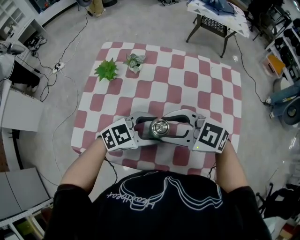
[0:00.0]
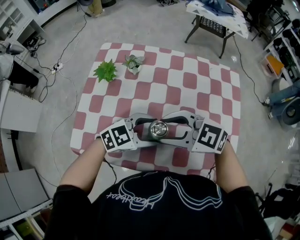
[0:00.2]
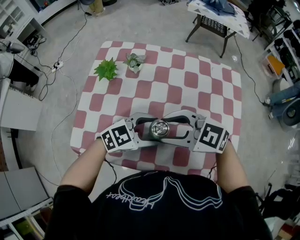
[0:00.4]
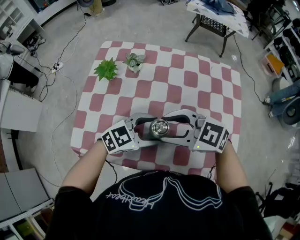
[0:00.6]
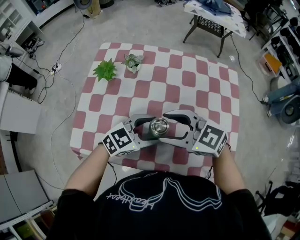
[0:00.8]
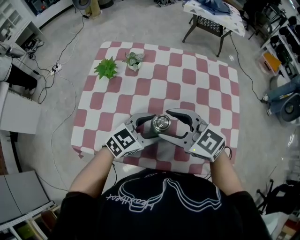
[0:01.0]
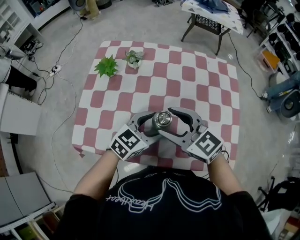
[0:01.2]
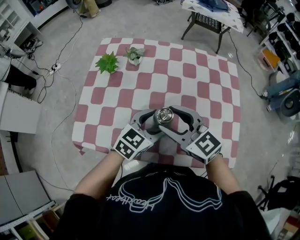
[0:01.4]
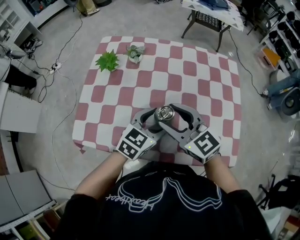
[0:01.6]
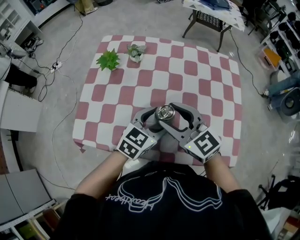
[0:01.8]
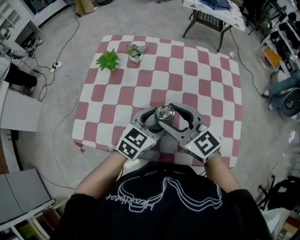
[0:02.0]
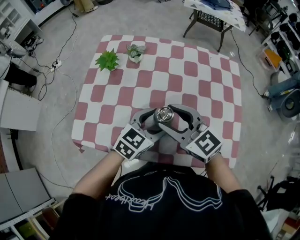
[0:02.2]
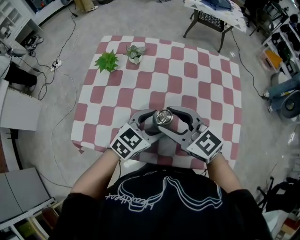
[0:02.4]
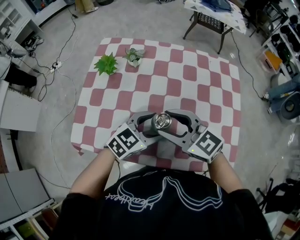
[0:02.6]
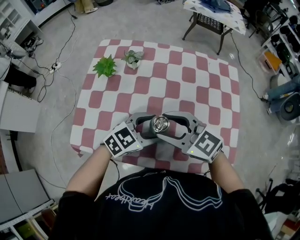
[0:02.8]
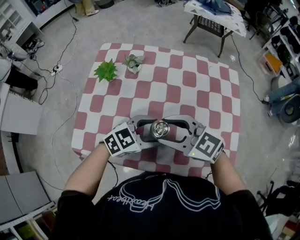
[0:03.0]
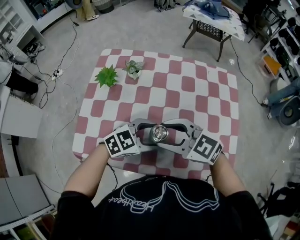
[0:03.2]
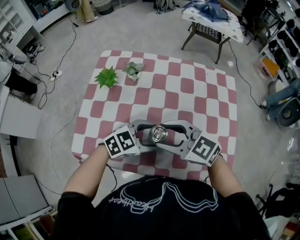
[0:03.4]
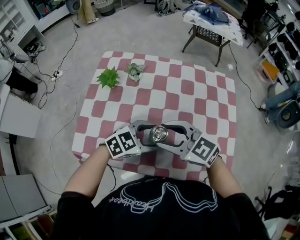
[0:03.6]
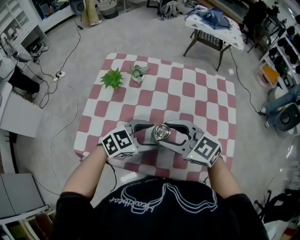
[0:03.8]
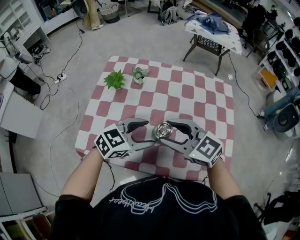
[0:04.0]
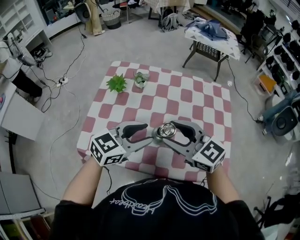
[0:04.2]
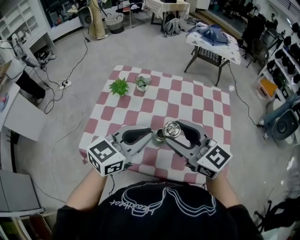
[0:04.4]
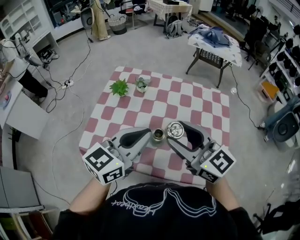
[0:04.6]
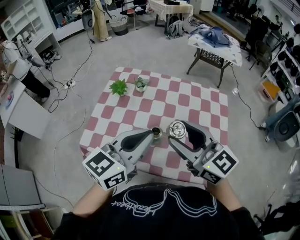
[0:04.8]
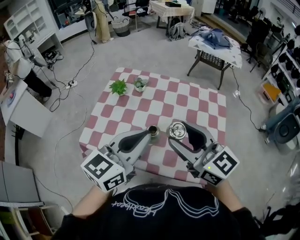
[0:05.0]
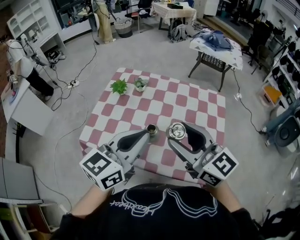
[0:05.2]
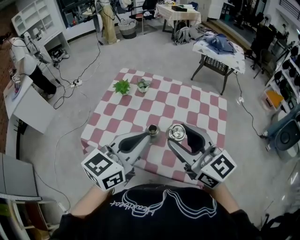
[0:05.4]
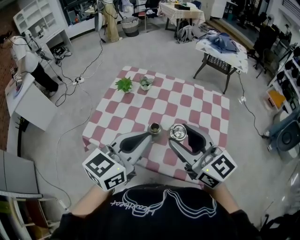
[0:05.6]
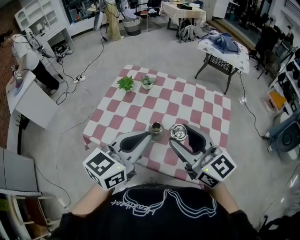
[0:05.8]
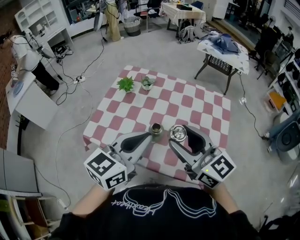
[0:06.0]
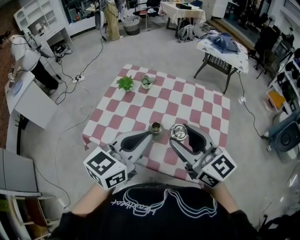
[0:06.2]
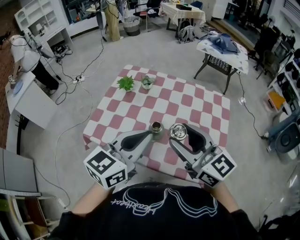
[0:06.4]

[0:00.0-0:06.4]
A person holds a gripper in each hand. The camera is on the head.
0:00.0 to 0:01.6: The left gripper rotates about 30 degrees, while the right gripper turns by approximately 30 degrees.
0:01.6 to 0:03.2: The right gripper turns by roughly 20 degrees. Meanwhile the left gripper turns by approximately 30 degrees.
0:03.2 to 0:04.8: The two grippers go roughly 20 cm upward. The left gripper swivels some 50 degrees, and closes up; the right gripper turns by roughly 30 degrees.
0:04.8 to 0:06.4: There are only small adjustments of the grippers.

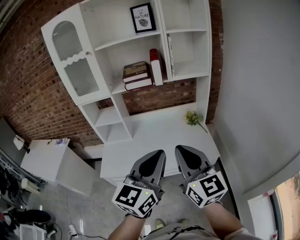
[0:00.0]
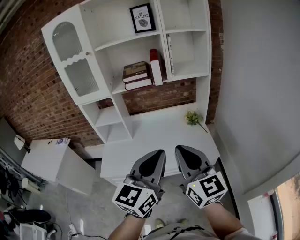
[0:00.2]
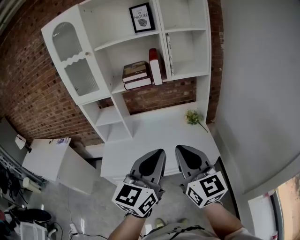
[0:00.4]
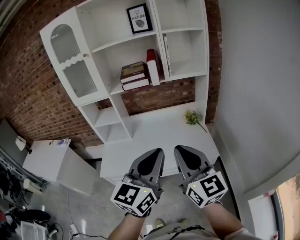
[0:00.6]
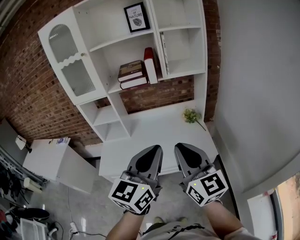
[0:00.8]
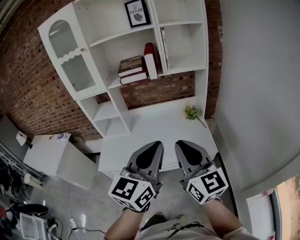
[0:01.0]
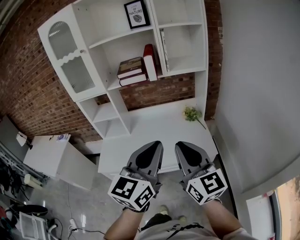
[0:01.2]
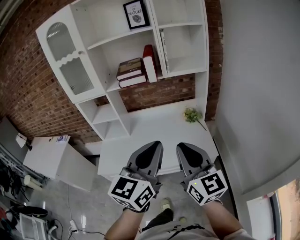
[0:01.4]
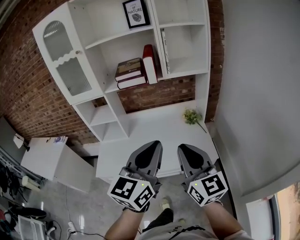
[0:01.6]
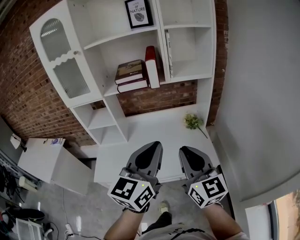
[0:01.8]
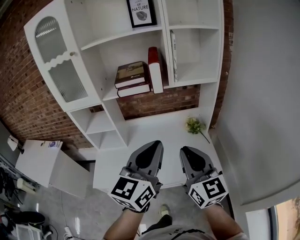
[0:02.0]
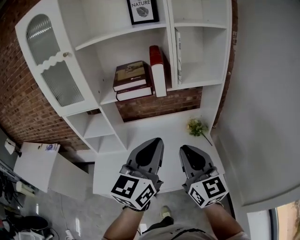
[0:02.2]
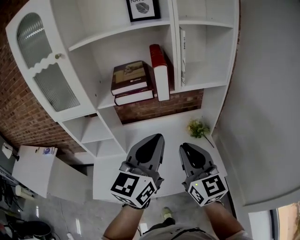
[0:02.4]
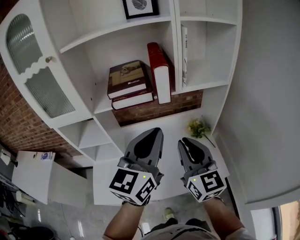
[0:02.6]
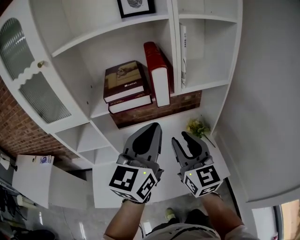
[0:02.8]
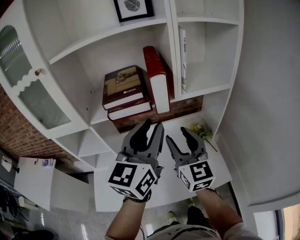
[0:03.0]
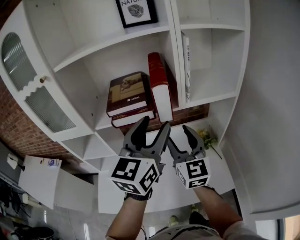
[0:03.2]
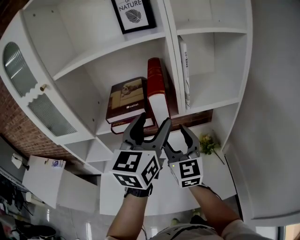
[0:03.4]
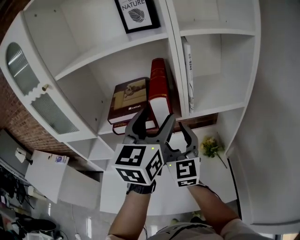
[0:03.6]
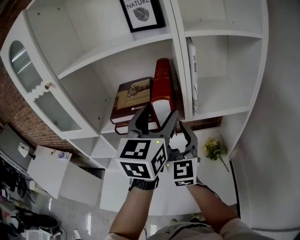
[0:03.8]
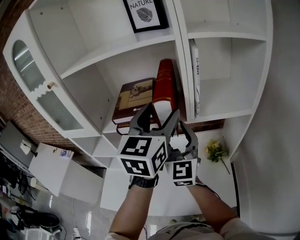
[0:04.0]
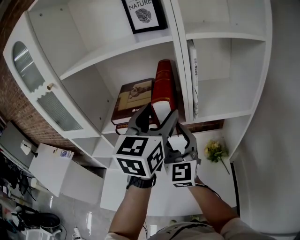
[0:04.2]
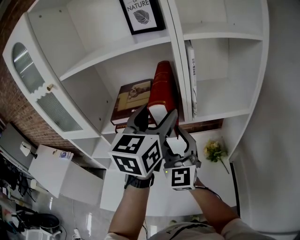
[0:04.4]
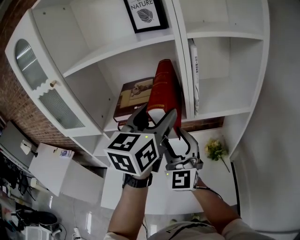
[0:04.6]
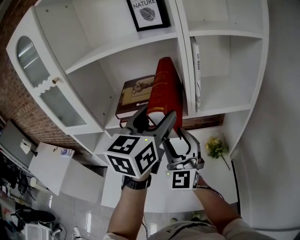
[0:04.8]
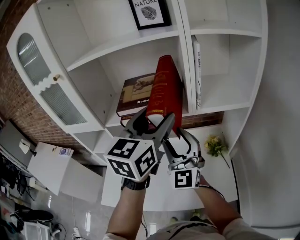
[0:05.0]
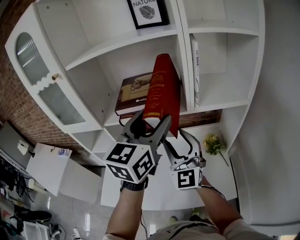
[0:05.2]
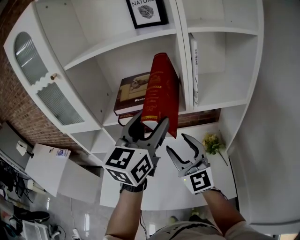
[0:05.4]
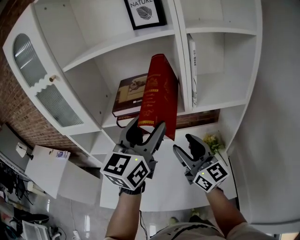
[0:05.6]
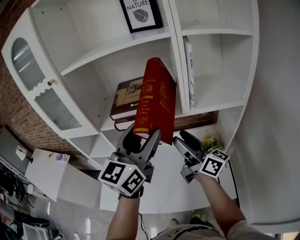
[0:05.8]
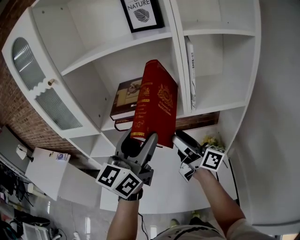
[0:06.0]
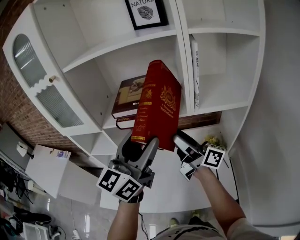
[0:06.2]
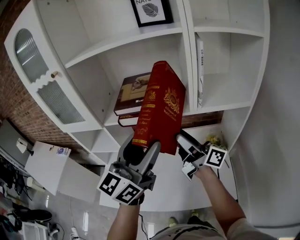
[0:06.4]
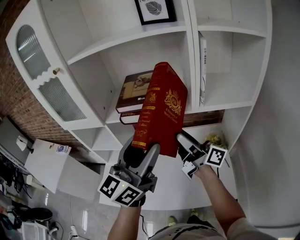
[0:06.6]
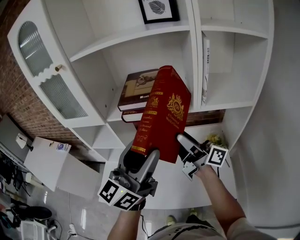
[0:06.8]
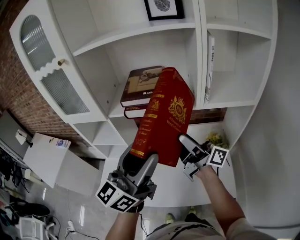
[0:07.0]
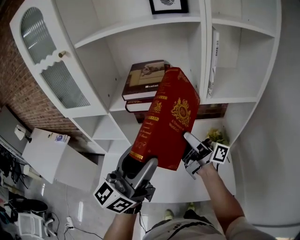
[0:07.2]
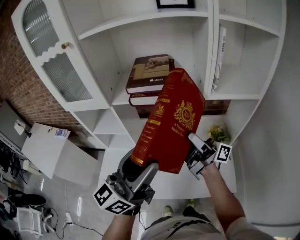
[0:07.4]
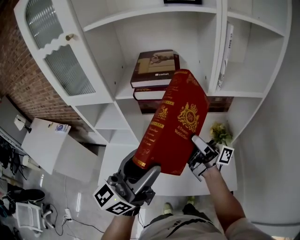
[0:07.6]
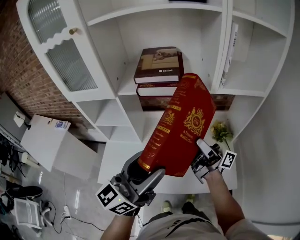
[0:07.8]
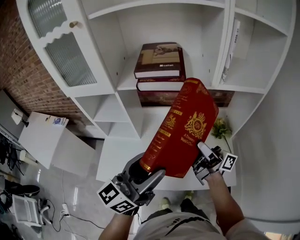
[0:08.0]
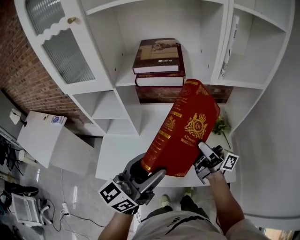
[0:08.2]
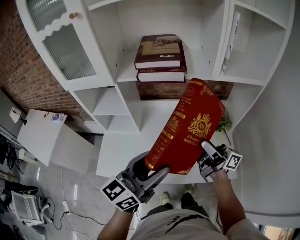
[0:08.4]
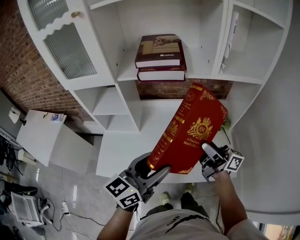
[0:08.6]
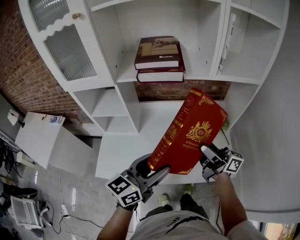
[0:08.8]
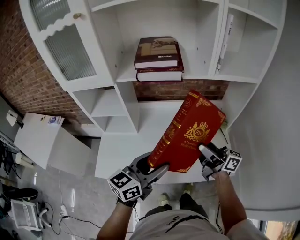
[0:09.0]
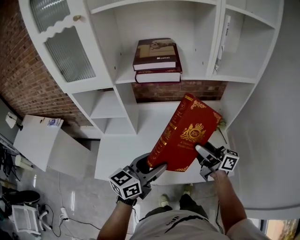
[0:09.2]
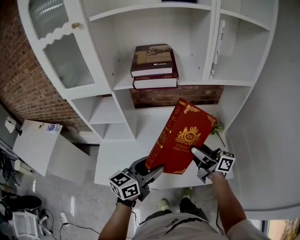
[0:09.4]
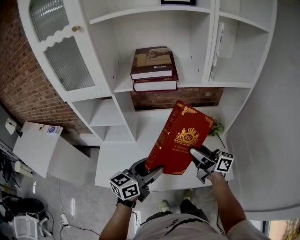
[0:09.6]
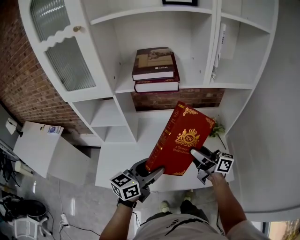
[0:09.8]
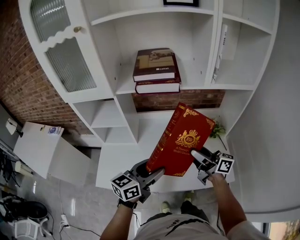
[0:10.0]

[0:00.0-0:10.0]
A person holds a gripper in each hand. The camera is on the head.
0:00.0 to 0:01.4: The right gripper heads to the right, covering some 5 cm, while the left gripper shifts by some 5 cm.
0:01.4 to 0:02.8: The two grippers go about 30 cm forward.
0:02.8 to 0:04.2: Both grippers travel together forward, about 15 cm. The right gripper opens its fingers, while the left gripper opens its fingers.
0:04.2 to 0:05.8: The left gripper travels backward and to the left by some 10 cm; the right gripper moves some 5 cm, and twists roughly 60 degrees clockwise, seen from behind.
0:05.8 to 0:07.2: The right gripper changes place by roughly 5 cm, and changes its angle by roughly 40 degrees; the left gripper travels backward and to the left by some 10 cm, and turns by roughly 20 degrees.
0:07.2 to 0:08.6: Both grippers move downward and backward, roughly 15 cm. The left gripper swivels roughly 20 degrees.
0:08.6 to 0:10.0: The left gripper is displaced downward by roughly 10 cm.

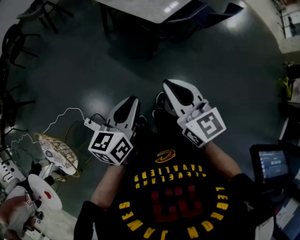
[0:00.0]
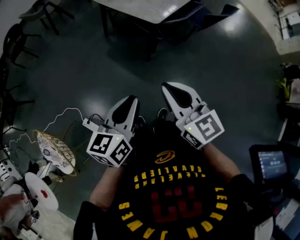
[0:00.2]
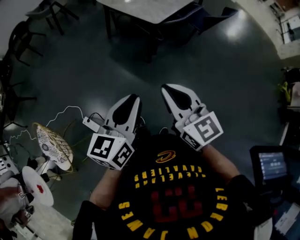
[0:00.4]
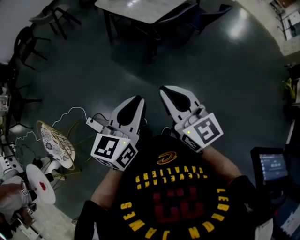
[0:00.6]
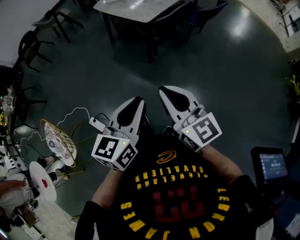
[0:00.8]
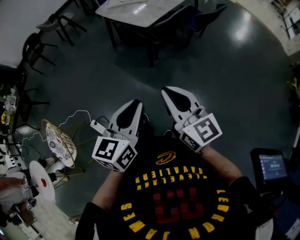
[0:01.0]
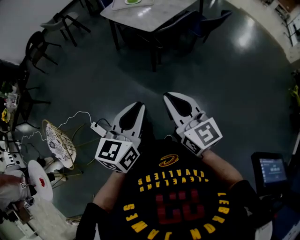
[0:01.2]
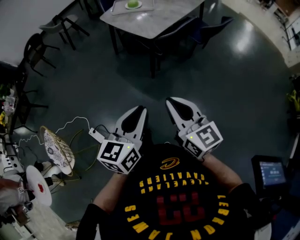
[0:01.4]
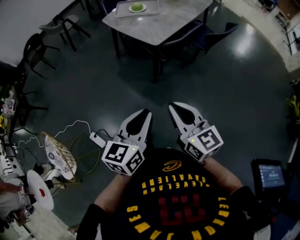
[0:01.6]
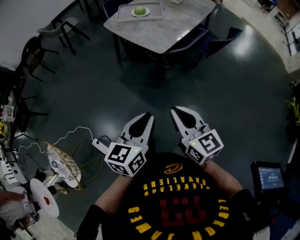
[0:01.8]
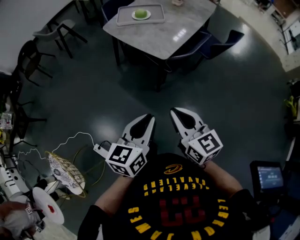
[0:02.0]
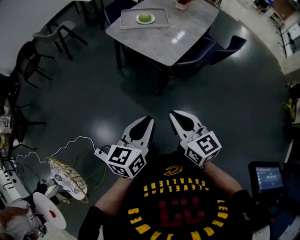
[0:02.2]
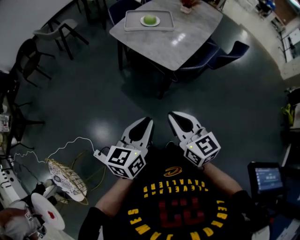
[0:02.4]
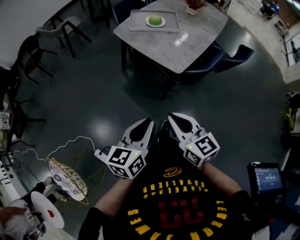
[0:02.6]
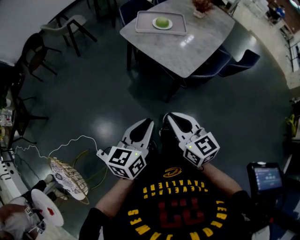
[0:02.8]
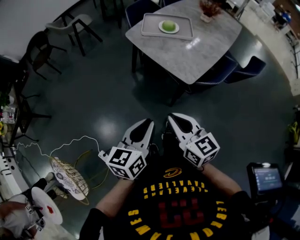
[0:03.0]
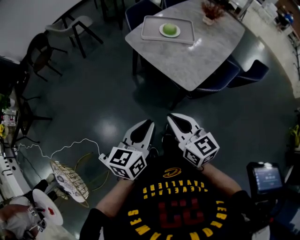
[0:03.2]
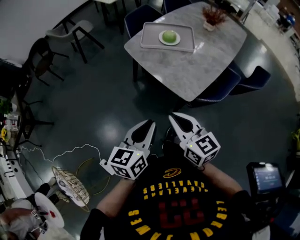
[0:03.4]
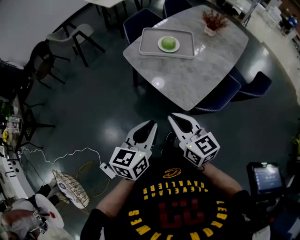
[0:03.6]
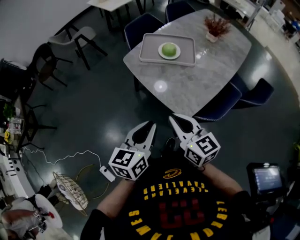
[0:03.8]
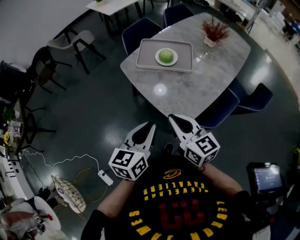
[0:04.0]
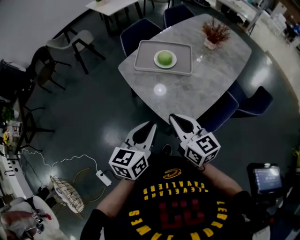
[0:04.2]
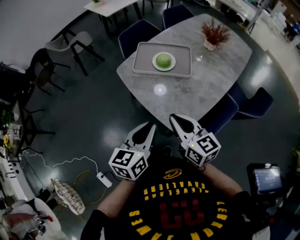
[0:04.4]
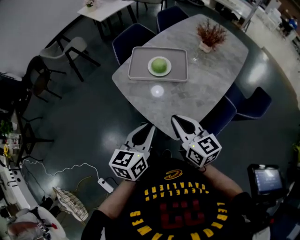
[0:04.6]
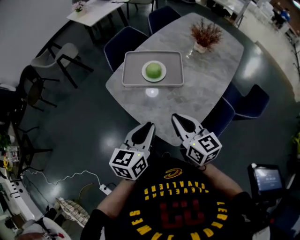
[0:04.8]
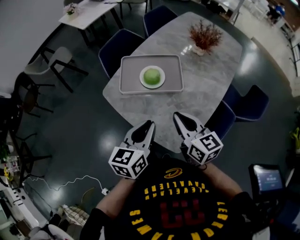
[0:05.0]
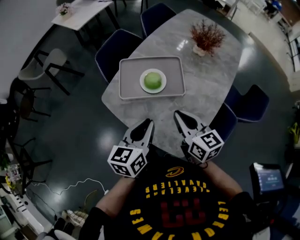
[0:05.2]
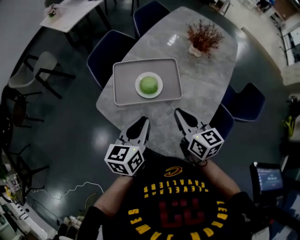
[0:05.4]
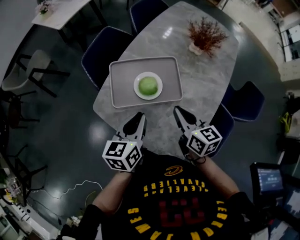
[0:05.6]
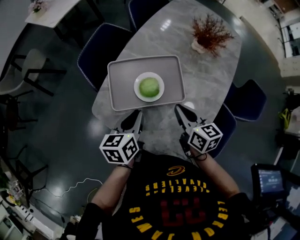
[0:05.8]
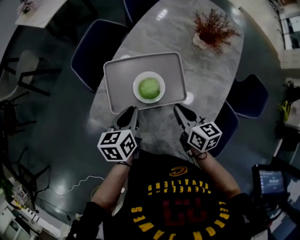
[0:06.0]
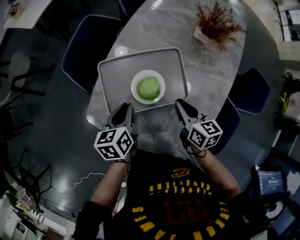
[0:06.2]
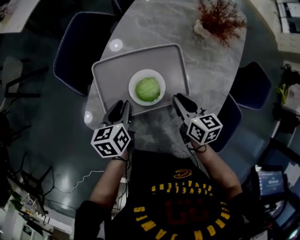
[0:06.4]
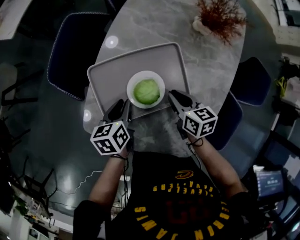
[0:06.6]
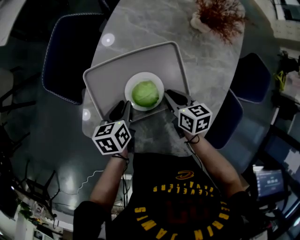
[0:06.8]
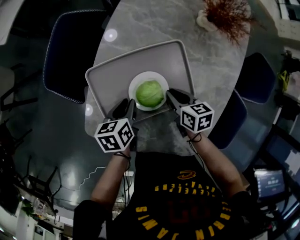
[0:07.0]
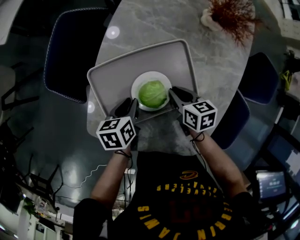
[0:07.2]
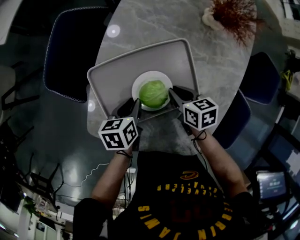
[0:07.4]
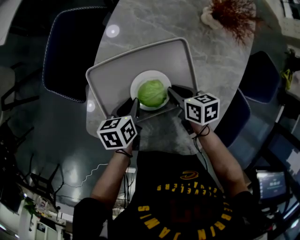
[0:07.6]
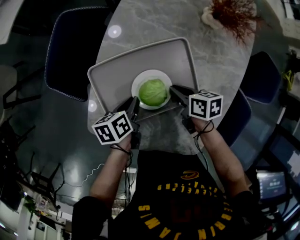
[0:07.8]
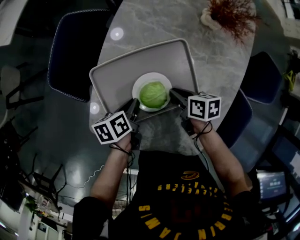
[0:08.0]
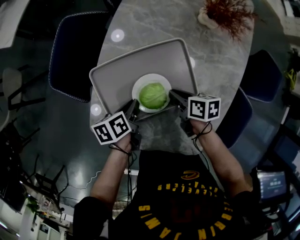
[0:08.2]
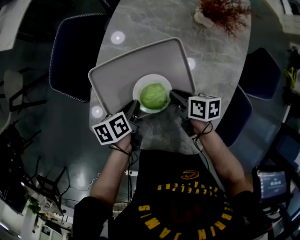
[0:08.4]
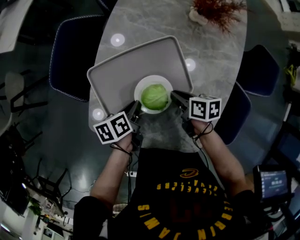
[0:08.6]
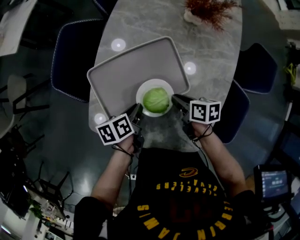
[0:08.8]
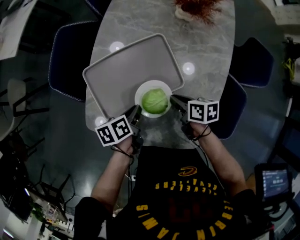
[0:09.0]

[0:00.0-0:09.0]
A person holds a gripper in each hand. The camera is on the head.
0:00.0 to 0:01.6: The left gripper heads to the right, backward and upward, covering about 15 cm. The right gripper shifts approximately 10 cm to the right and backward.
0:01.6 to 0:03.0: Both grippers travel together forward and to the left, about 30 cm.
0:03.0 to 0:04.4: The two grippers go about 30 cm forward and to the right.
0:04.4 to 0:06.0: The left gripper moves forward, some 35 cm, and changes its angle by about 20 degrees. The right gripper moves forward and downward, roughly 35 cm, and changes its angle by approximately 30 degrees.
0:06.0 to 0:07.6: Both grippers move downward and forward, roughly 15 cm. The left gripper rotates about 20 degrees. The right gripper changes its angle by about 30 degrees.
0:07.6 to 0:09.0: The two grippers go about 5 cm backward.
